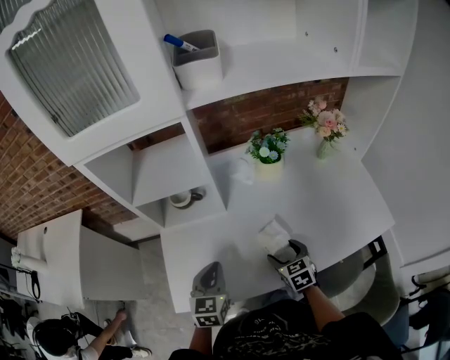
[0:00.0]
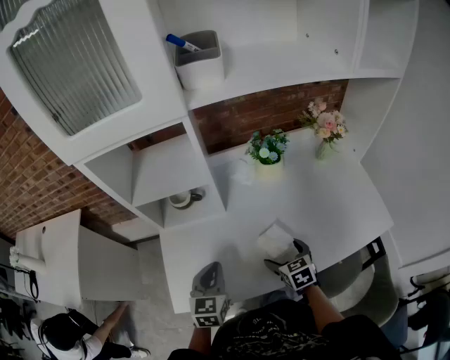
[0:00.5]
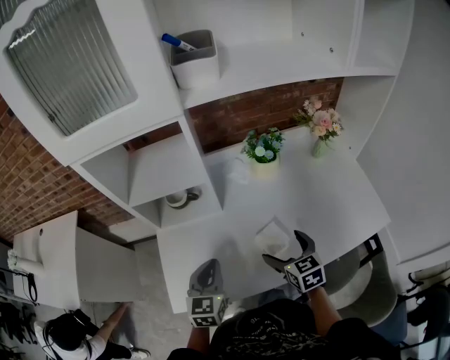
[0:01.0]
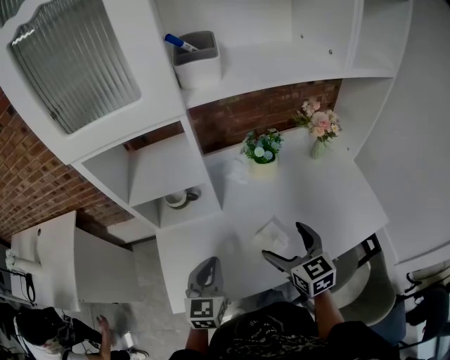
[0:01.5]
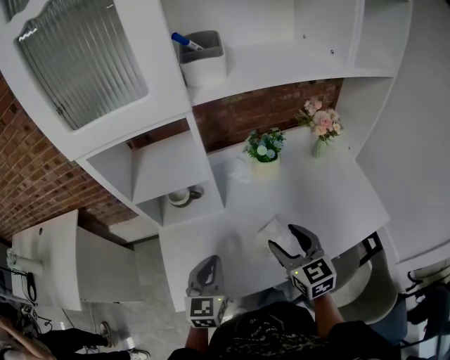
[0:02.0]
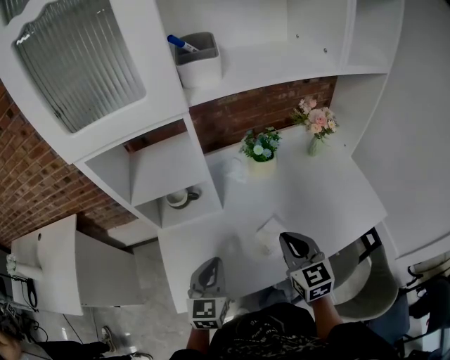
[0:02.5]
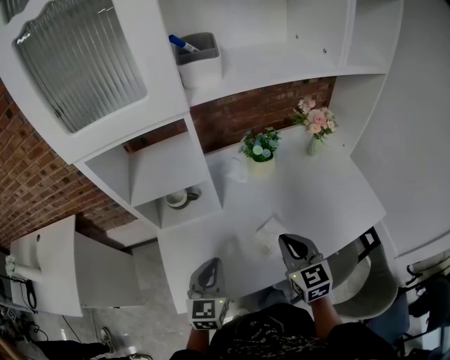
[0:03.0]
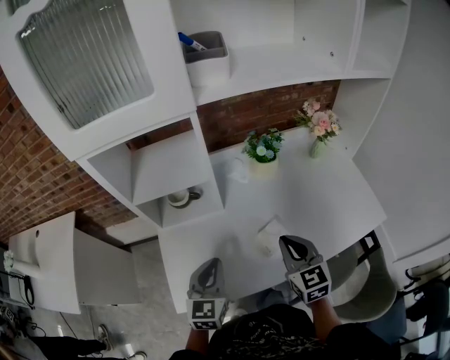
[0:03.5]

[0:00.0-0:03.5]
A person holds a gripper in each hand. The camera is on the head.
0:00.0 to 0:02.0: The right gripper travels upward by about 20 cm, and turns by about 20 degrees. The left gripper heads upward, covering approximately 5 cm.
0:02.0 to 0:03.5: The right gripper closes.

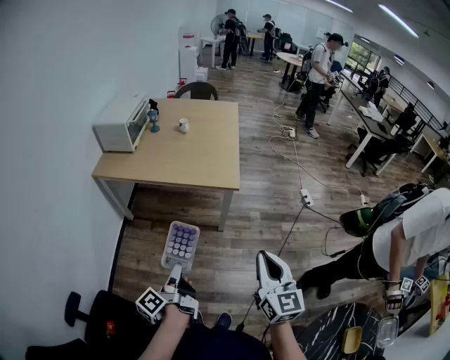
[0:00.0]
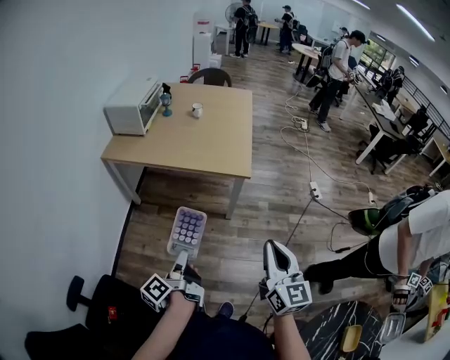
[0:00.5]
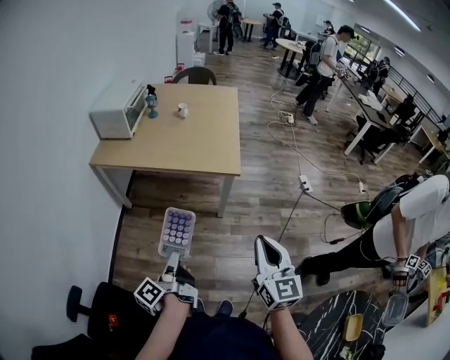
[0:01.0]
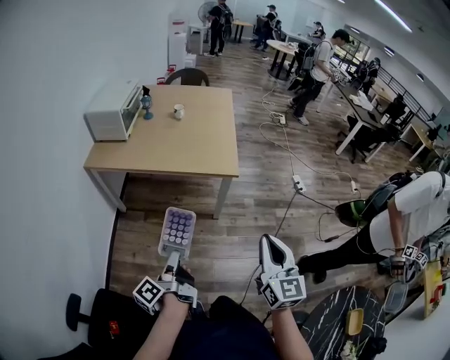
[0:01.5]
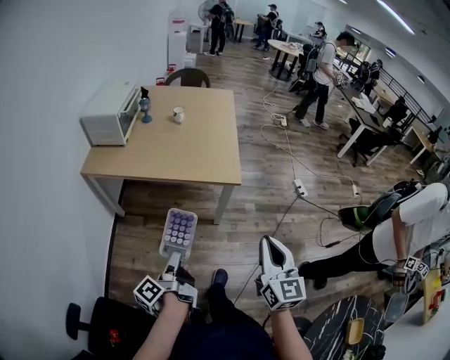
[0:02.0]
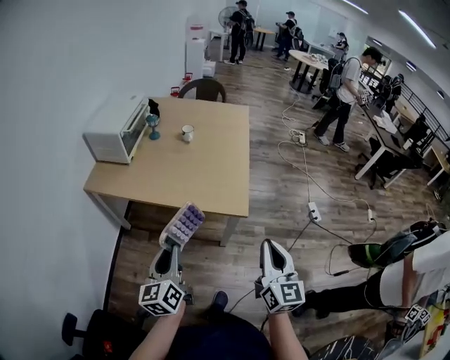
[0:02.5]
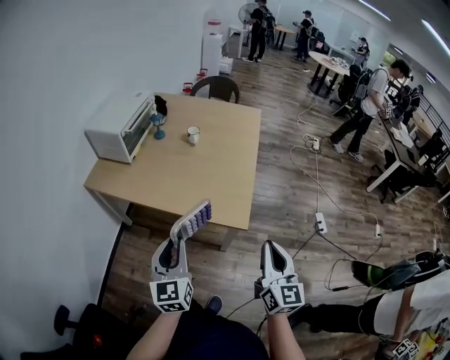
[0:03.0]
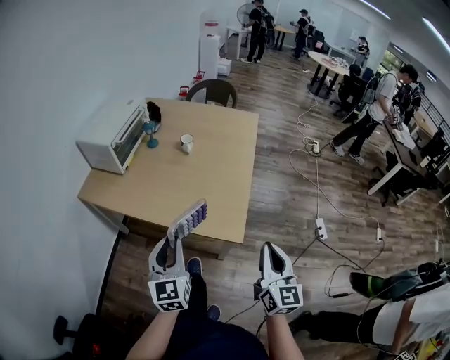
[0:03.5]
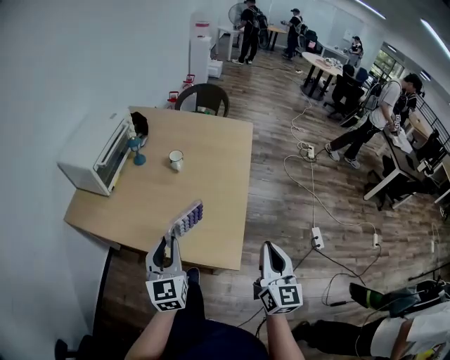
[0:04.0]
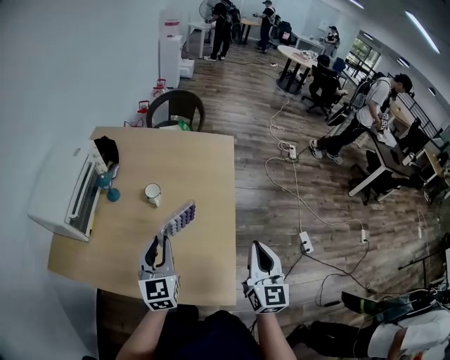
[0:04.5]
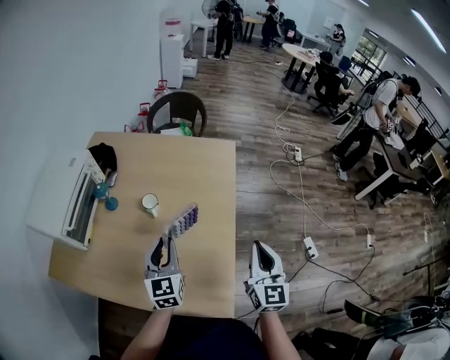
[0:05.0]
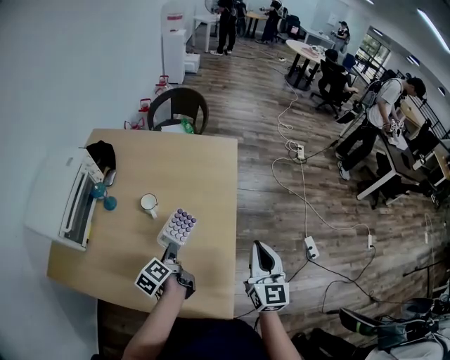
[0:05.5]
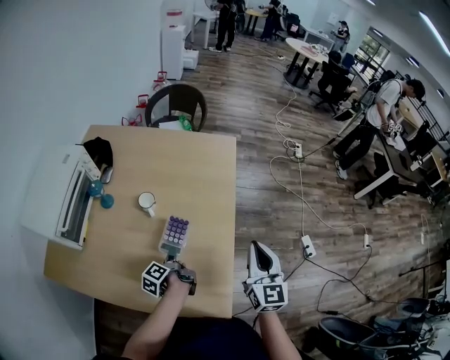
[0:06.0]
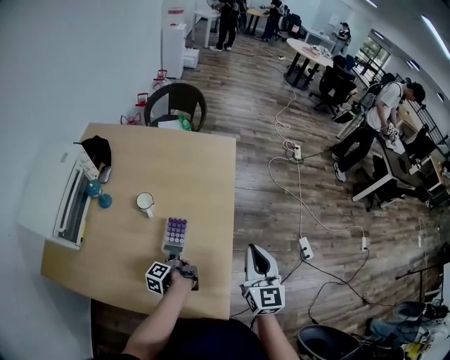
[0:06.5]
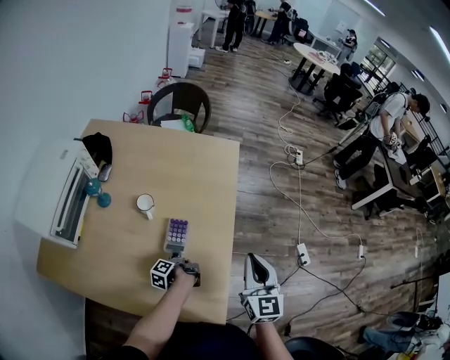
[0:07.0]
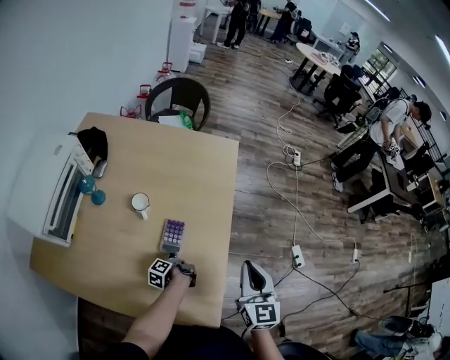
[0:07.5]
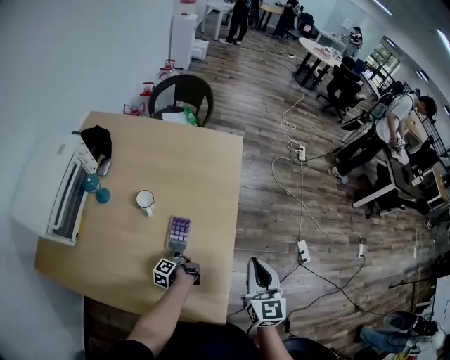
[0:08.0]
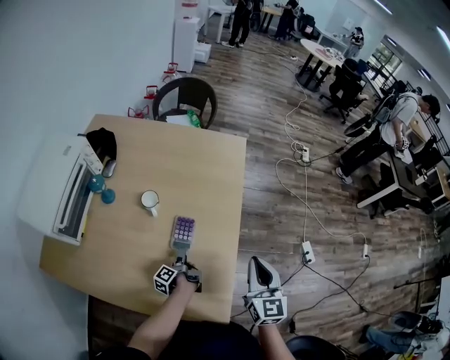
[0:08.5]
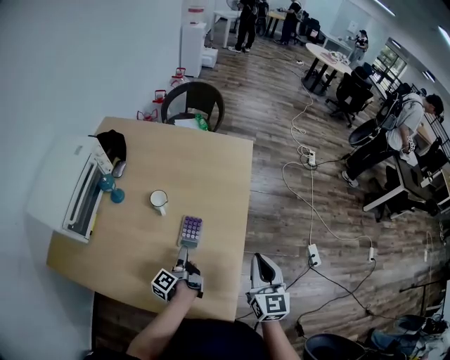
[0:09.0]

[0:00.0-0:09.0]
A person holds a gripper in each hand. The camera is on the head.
0:00.0 to 0:02.0: Both grippers move forward, approximately 10 cm.
0:02.0 to 0:04.5: The pair of grippers is taken forward, about 70 cm. The left gripper rotates around the line of its fingers by approximately 90 degrees, clockwise from behind.
0:04.5 to 0:07.0: The right gripper heads forward and downward, covering approximately 10 cm; the left gripper moves downward, roughly 30 cm, and twists approximately 100 degrees counterclockwise, seen from behind.
0:07.0 to 0:09.0: The left gripper heads upward, covering some 10 cm, turns by about 20 degrees, and opens.

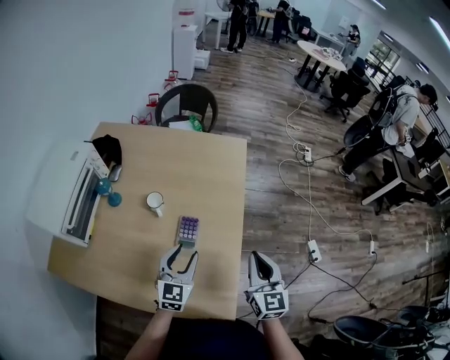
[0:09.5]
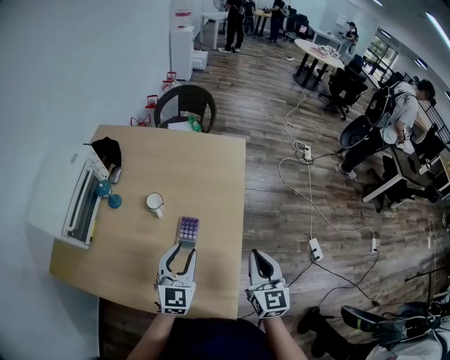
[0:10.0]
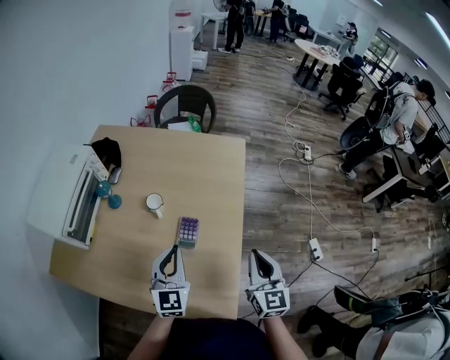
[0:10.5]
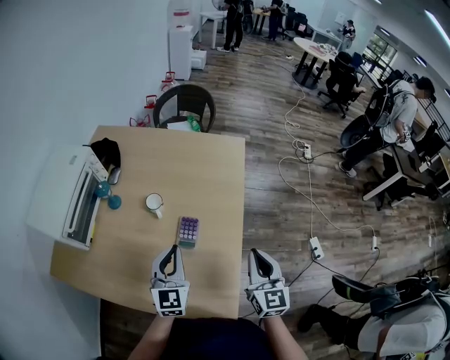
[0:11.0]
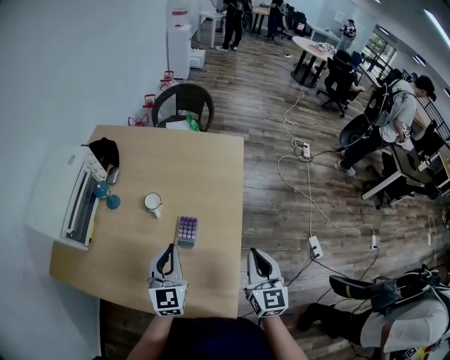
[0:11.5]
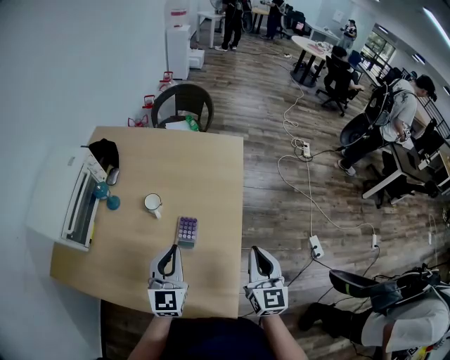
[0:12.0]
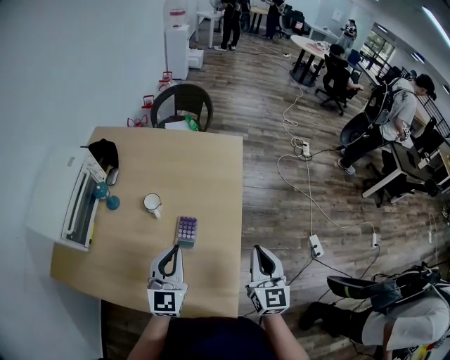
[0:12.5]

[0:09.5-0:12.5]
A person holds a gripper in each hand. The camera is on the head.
0:09.5 to 0:11.0: The left gripper is displaced upward by some 5 cm, and closes up.
0:11.0 to 0:12.5: There are only small adjustments of the grippers.

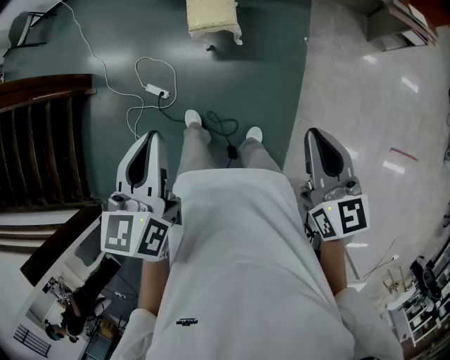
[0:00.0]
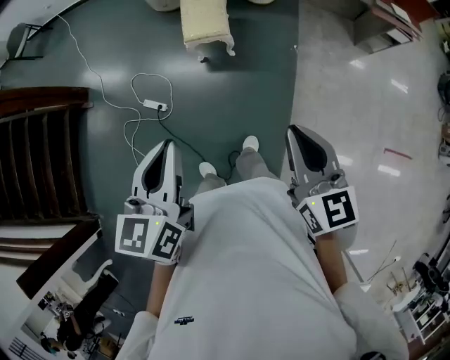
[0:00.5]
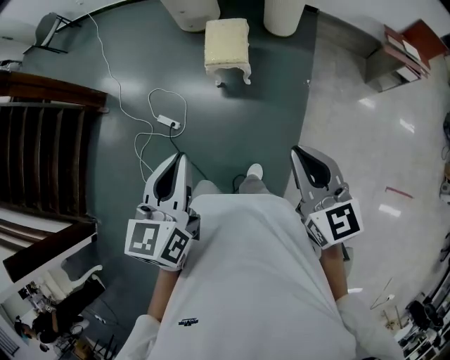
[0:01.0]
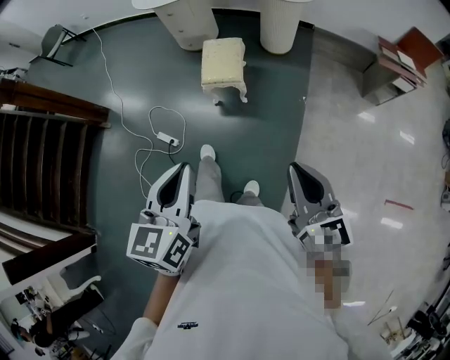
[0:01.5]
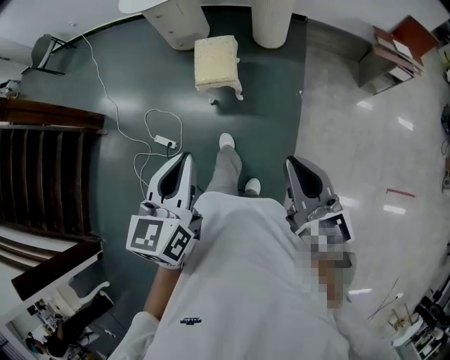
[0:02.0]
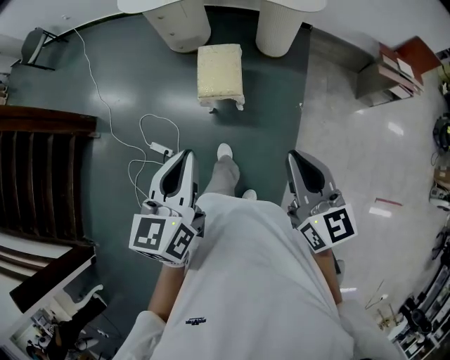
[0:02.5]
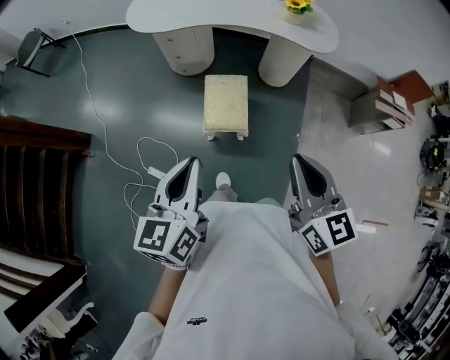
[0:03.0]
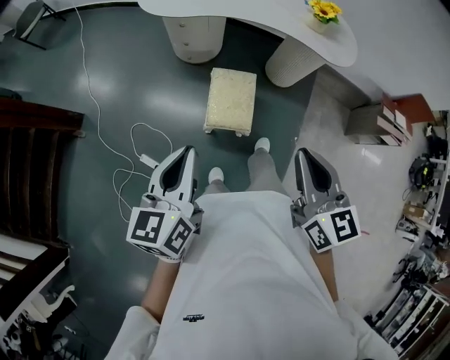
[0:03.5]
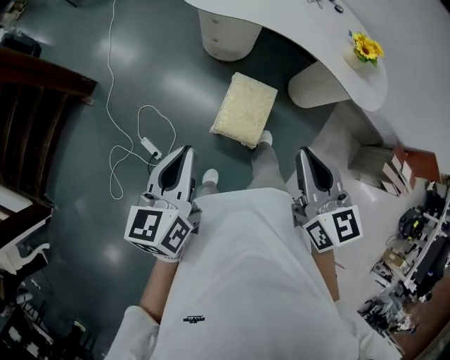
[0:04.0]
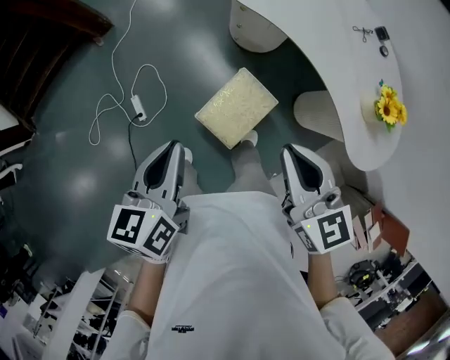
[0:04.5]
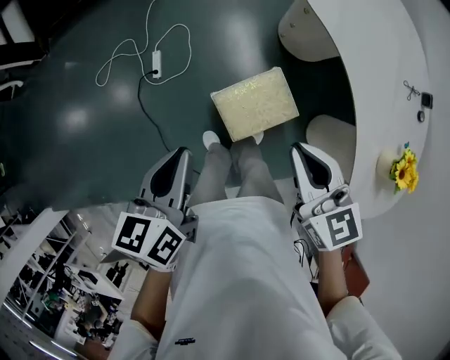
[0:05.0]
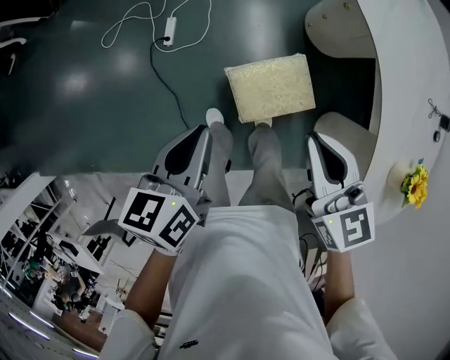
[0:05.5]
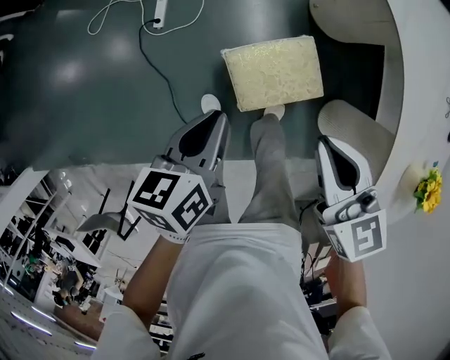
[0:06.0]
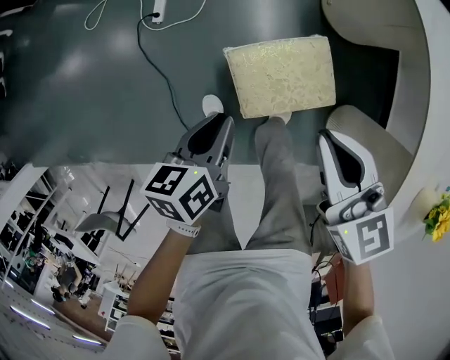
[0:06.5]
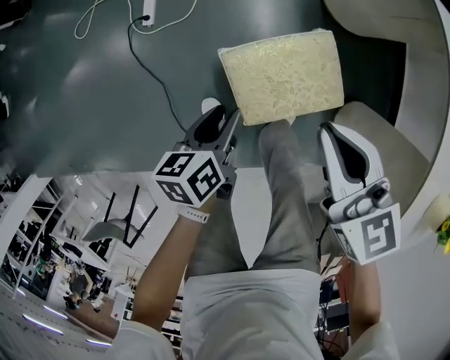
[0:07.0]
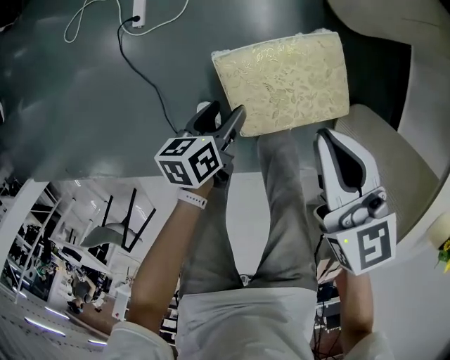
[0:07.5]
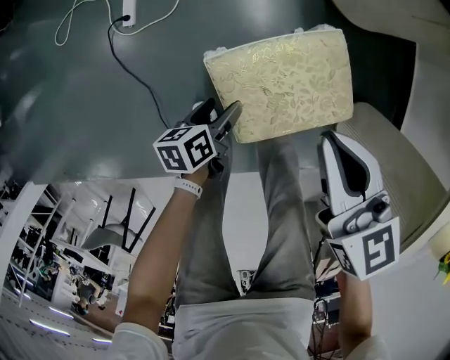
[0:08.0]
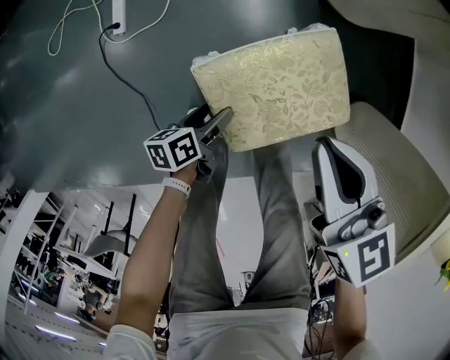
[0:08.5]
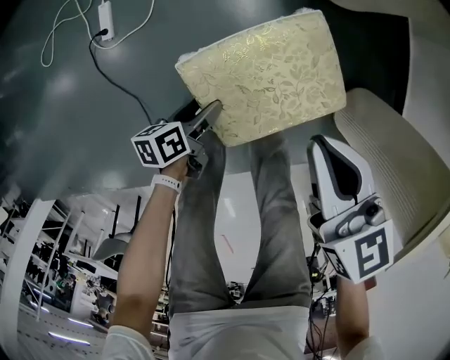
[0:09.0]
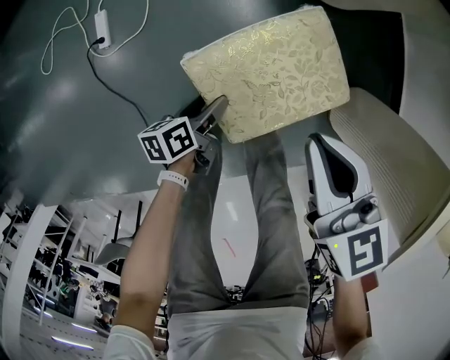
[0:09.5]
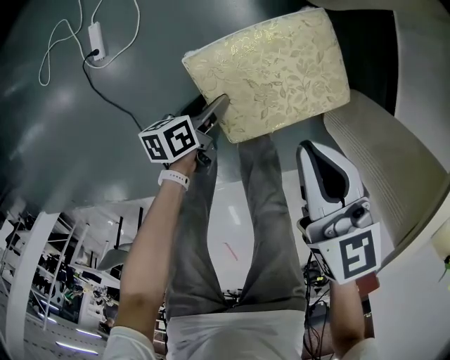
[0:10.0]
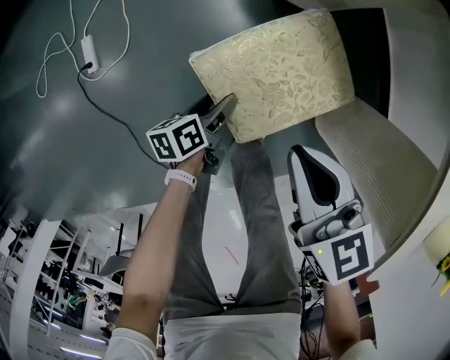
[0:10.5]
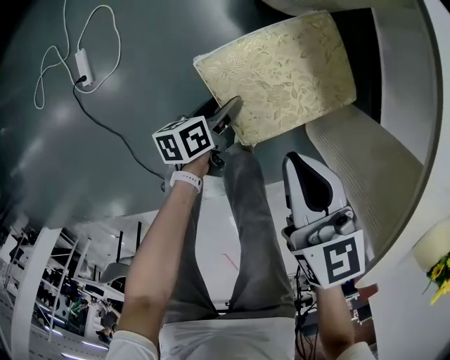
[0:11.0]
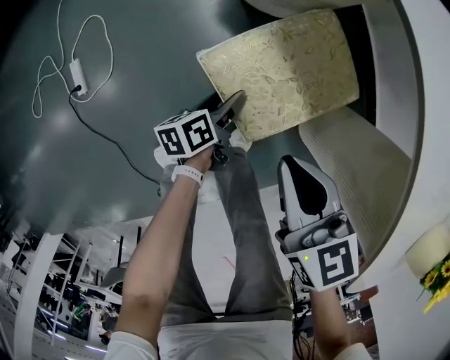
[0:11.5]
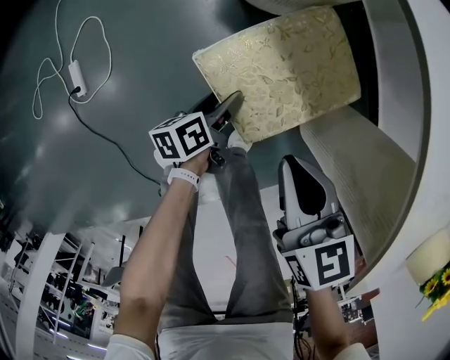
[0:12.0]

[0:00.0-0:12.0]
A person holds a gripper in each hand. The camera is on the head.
0:00.0 to 0:02.0: The left gripper heads to the right, covering approximately 5 cm.
0:02.0 to 0:04.0: The pair of grippers is taken forward, about 50 cm. The right gripper swivels about 20 degrees, while the left gripper rotates some 30 degrees.
0:04.0 to 0:06.0: The two grippers go approximately 20 cm downward. The right gripper rotates some 70 degrees. Meanwhile the left gripper turns by roughly 50 degrees.
0:06.0 to 0:08.0: The right gripper heads downward, covering roughly 25 cm. Meanwhile the left gripper moves downward, roughly 40 cm, and opens.
0:08.0 to 0:10.0: The right gripper is displaced backward by approximately 5 cm.
0:10.0 to 0:12.0: The right gripper moves backward, about 5 cm.
